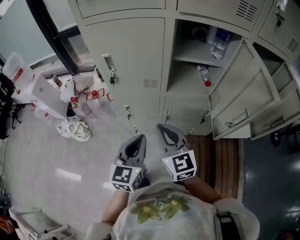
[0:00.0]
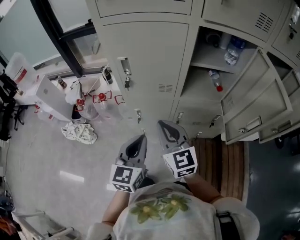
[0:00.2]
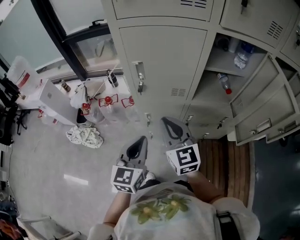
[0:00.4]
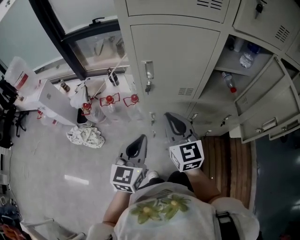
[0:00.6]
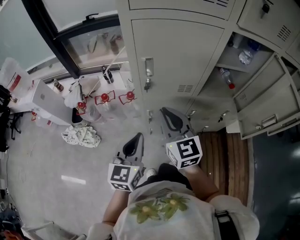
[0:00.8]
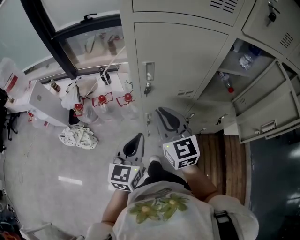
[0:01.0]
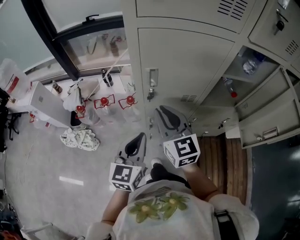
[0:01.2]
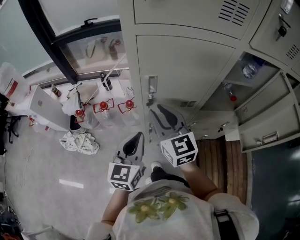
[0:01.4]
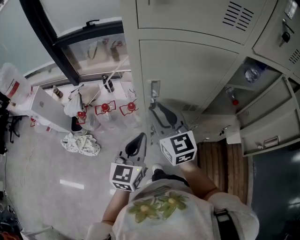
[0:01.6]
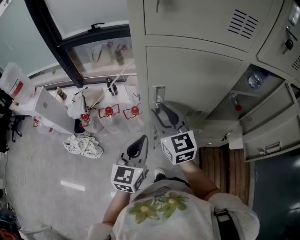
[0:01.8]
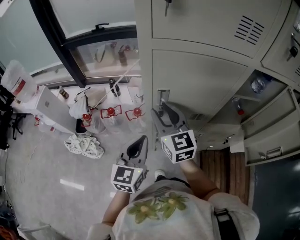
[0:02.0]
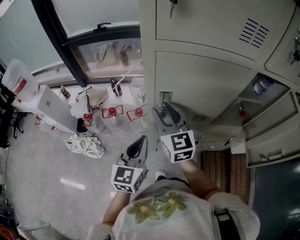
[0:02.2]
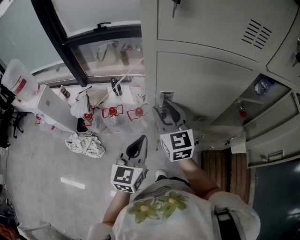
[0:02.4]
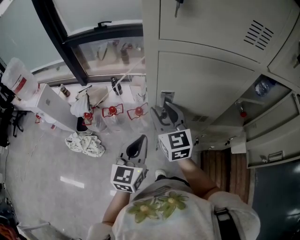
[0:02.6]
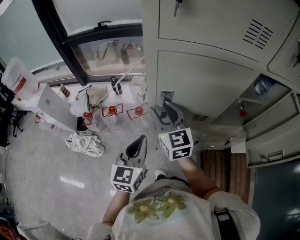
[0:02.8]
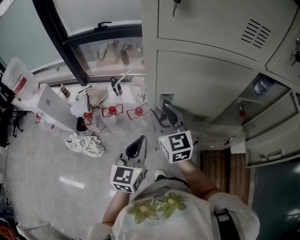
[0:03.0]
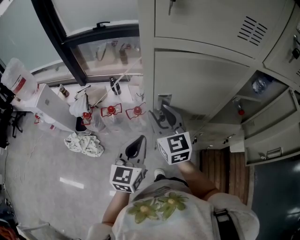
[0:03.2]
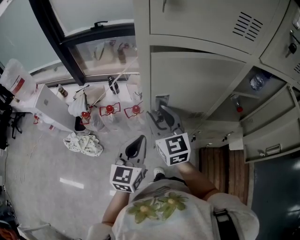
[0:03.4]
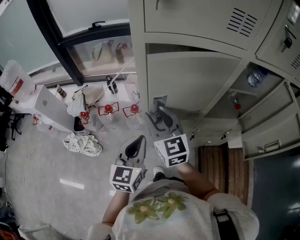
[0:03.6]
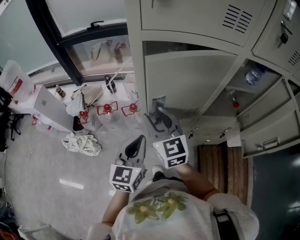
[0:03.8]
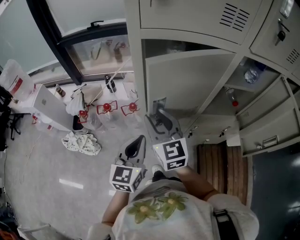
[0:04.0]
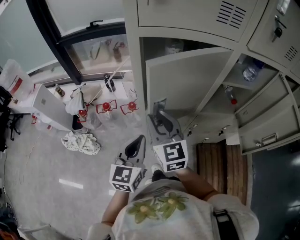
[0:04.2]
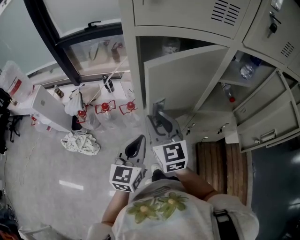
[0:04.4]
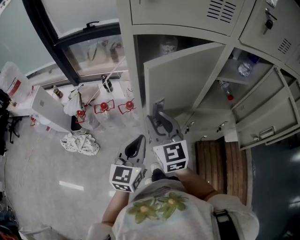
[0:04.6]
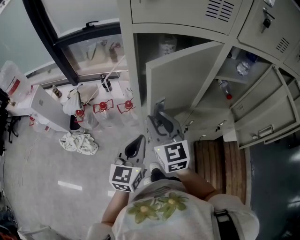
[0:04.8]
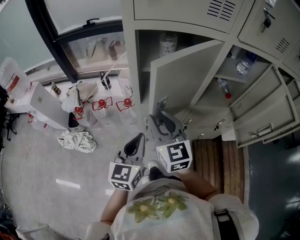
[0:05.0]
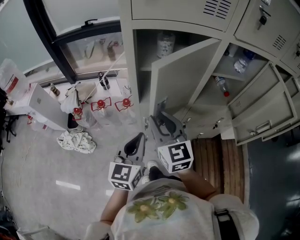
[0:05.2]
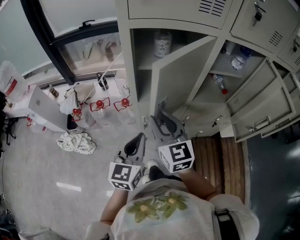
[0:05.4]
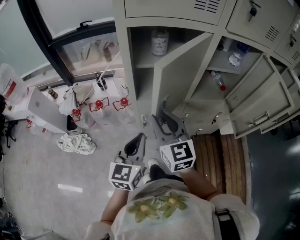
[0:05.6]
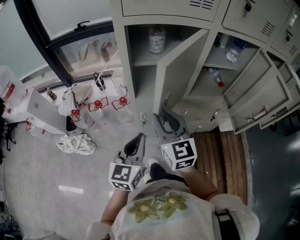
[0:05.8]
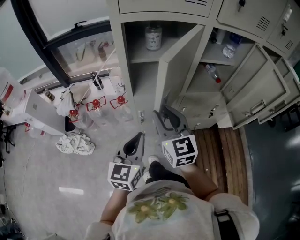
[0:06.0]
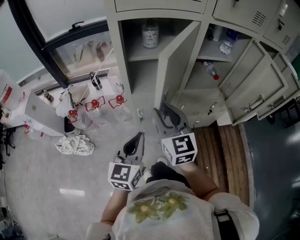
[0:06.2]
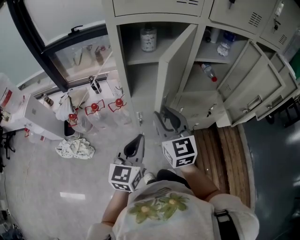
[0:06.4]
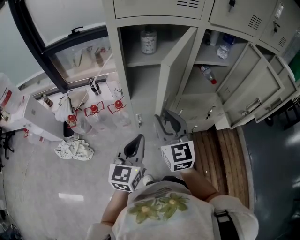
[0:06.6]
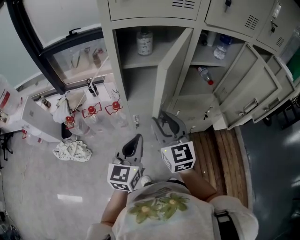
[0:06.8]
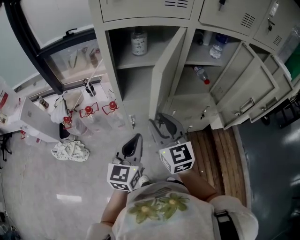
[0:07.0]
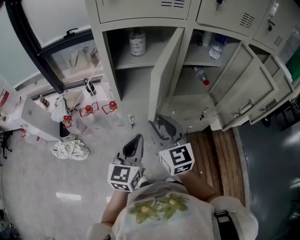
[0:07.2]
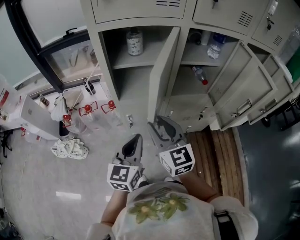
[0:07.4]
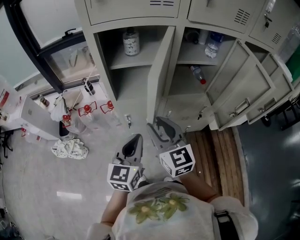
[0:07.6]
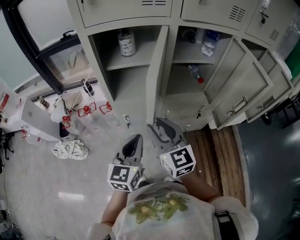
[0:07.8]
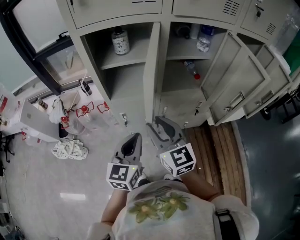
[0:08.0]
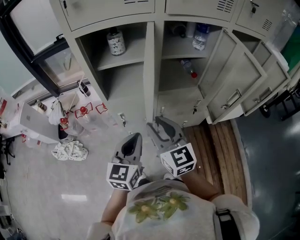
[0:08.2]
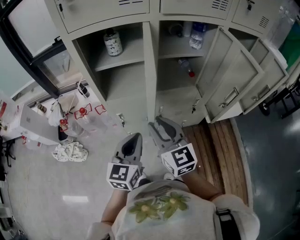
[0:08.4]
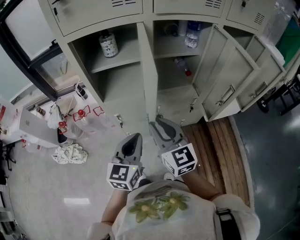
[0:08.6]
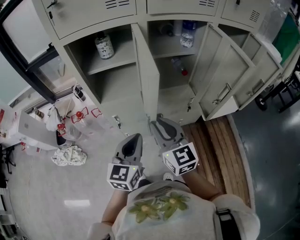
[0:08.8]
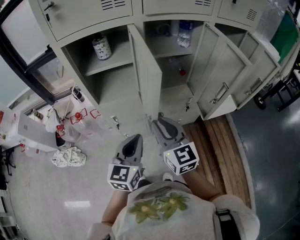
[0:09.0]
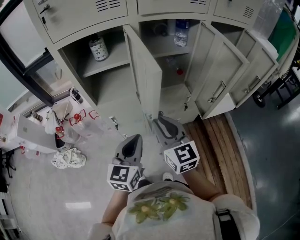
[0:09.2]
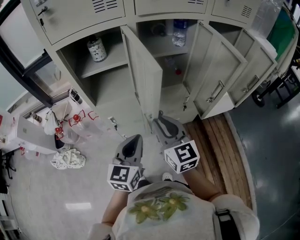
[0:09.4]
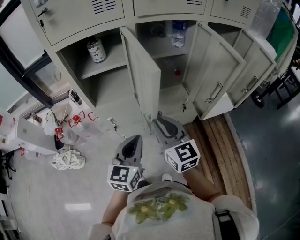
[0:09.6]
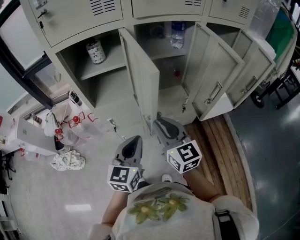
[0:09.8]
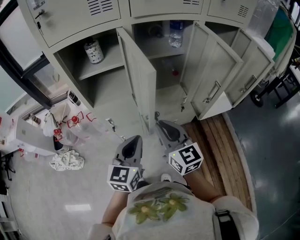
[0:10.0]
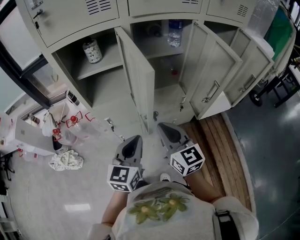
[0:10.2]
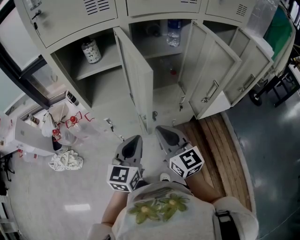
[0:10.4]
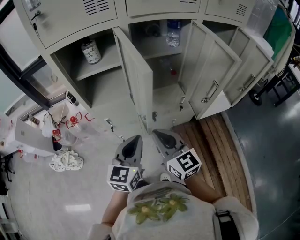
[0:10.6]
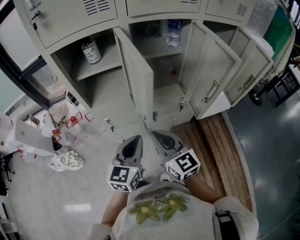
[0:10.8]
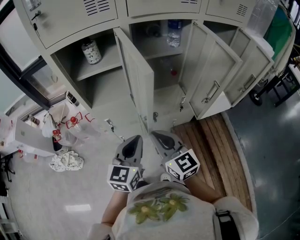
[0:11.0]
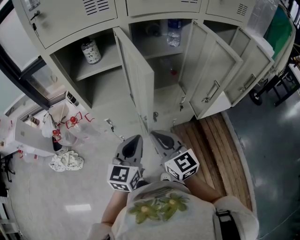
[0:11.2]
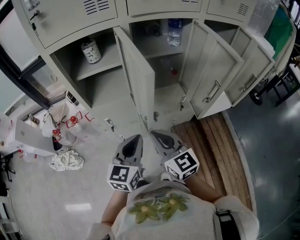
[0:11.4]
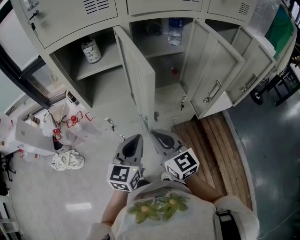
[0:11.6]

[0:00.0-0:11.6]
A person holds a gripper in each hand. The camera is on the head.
0:00.0 to 0:01.4: Both grippers travel together to the left and forward, about 25 cm.
0:01.4 to 0:02.8: The right gripper moves forward, about 5 cm.
0:02.8 to 0:04.4: The right gripper travels backward by approximately 10 cm, while the left gripper heads backward, covering roughly 5 cm.
0:04.4 to 0:05.8: Both grippers travel together backward, some 5 cm.
0:05.8 to 0:07.2: The two grippers go roughly 5 cm to the right.
0:07.2 to 0:08.8: The two grippers go approximately 10 cm to the right.
0:08.8 to 0:10.2: The right gripper moves to the right, approximately 5 cm.
0:10.2 to 0:11.6: The grippers move only a little.

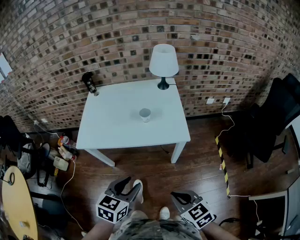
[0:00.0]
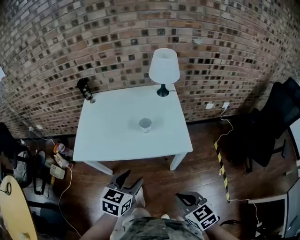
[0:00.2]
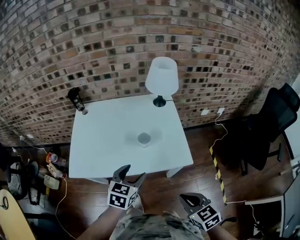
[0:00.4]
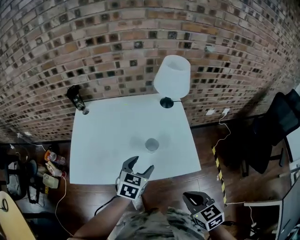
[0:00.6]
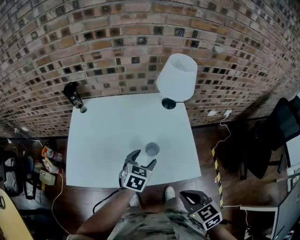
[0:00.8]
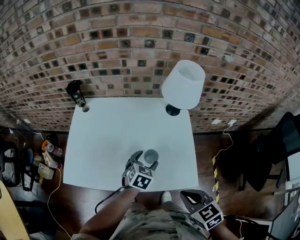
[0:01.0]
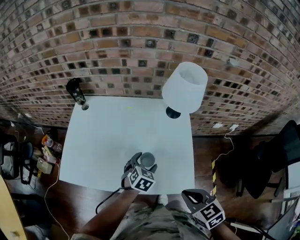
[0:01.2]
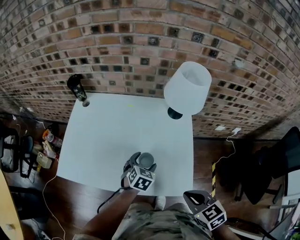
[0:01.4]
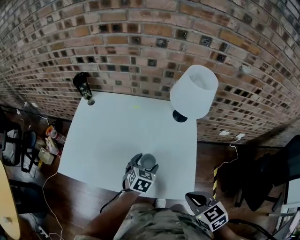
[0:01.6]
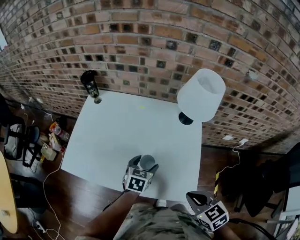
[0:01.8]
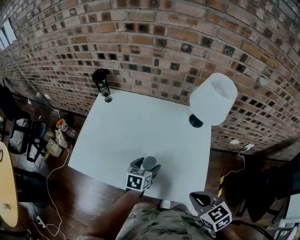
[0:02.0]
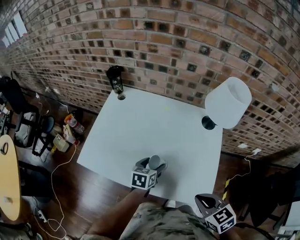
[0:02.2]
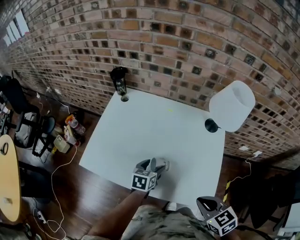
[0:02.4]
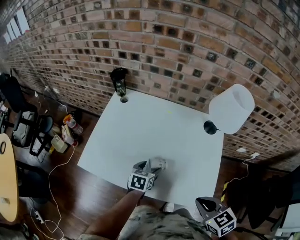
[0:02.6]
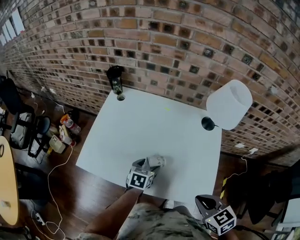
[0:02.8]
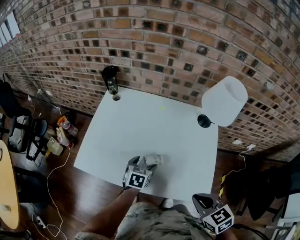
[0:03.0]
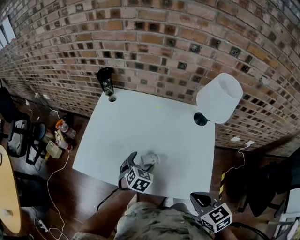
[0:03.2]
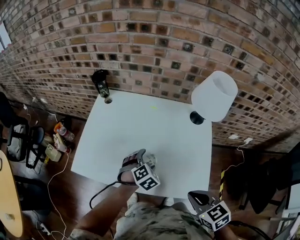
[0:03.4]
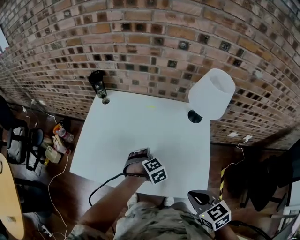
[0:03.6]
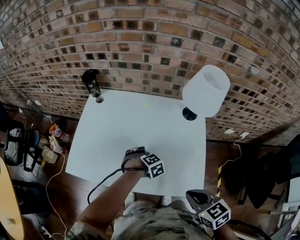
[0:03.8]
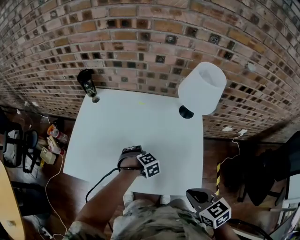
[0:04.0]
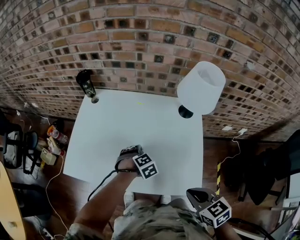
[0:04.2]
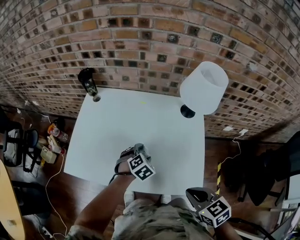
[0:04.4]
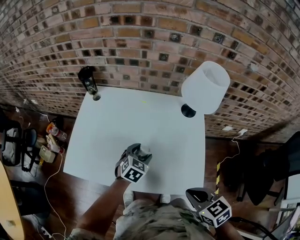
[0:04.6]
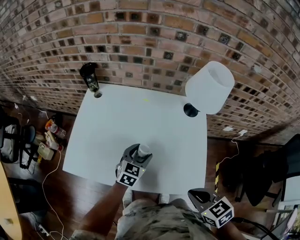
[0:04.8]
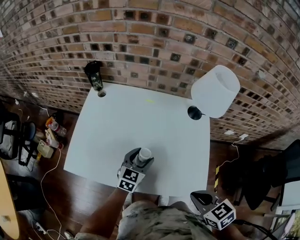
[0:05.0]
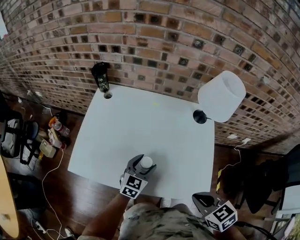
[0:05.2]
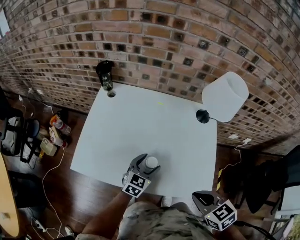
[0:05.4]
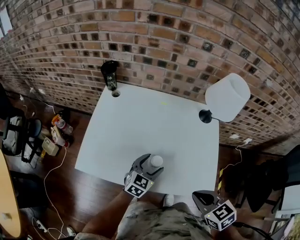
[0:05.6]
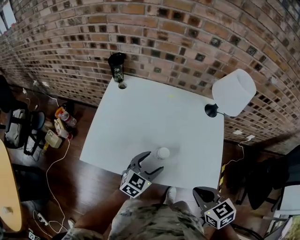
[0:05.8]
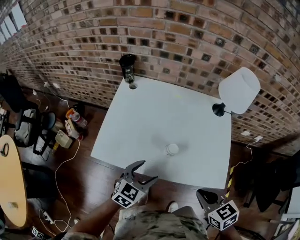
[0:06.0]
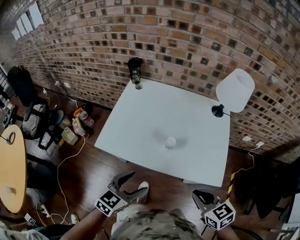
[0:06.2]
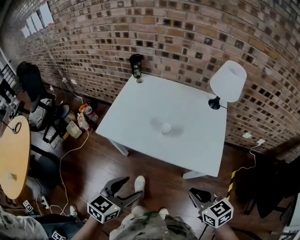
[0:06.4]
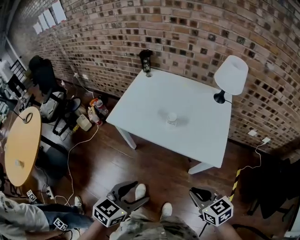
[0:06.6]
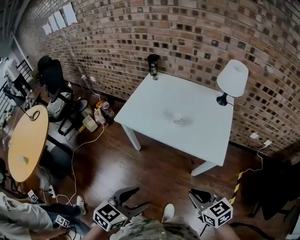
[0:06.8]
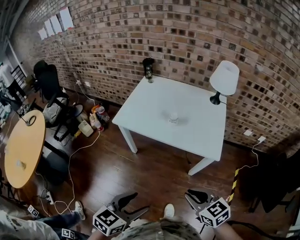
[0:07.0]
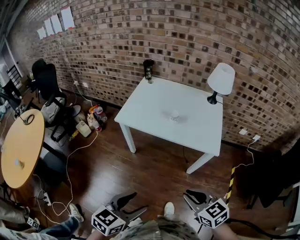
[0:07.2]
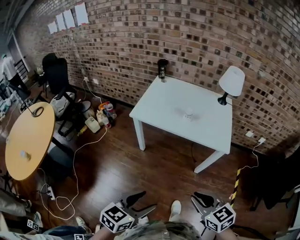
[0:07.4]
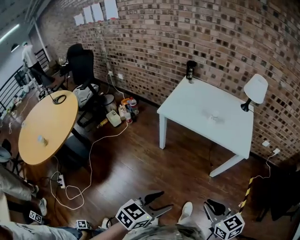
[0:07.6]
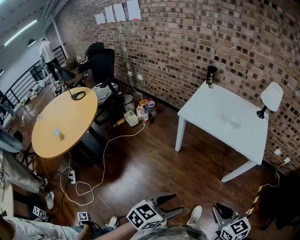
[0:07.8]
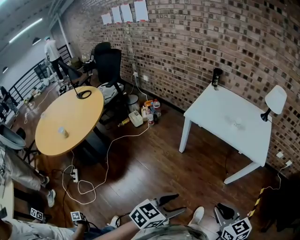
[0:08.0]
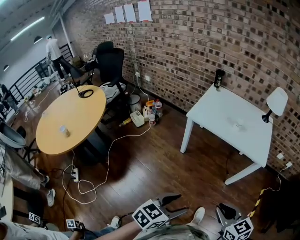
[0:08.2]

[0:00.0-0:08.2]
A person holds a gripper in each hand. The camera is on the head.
0:00.0 to 0:01.6: The left gripper heads forward and downward, covering approximately 50 cm, and opens up. The right gripper moves forward, some 35 cm.
0:01.6 to 0:03.2: The left gripper is displaced to the left by about 15 cm, while the right gripper shifts about 10 cm to the left.
0:03.2 to 0:05.0: The left gripper goes downward and returns, approximately 5 cm each way, and rotates approximately 30 degrees.
0:05.0 to 0:06.6: The left gripper heads backward, covering roughly 40 cm, while the right gripper travels backward by some 20 cm.
0:06.6 to 0:08.2: The grippers both shift backward and to the left by roughly 35 cm.

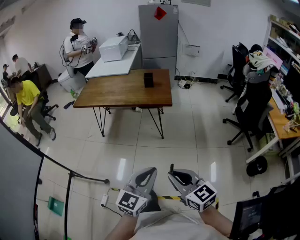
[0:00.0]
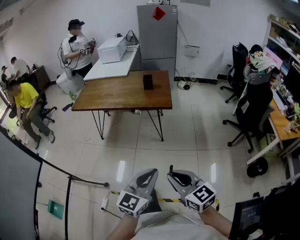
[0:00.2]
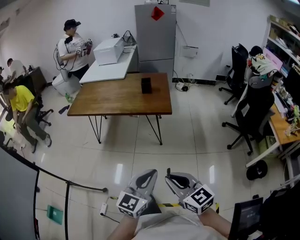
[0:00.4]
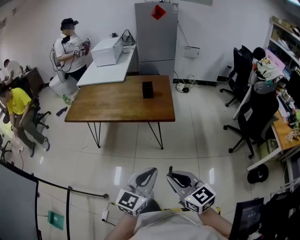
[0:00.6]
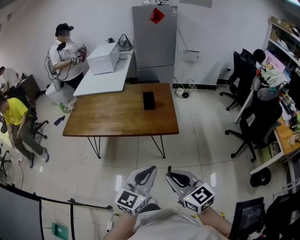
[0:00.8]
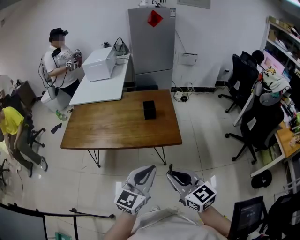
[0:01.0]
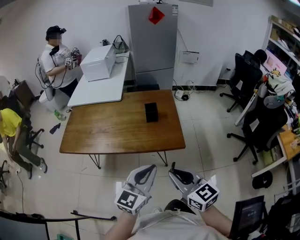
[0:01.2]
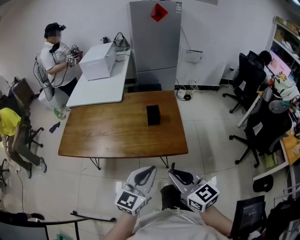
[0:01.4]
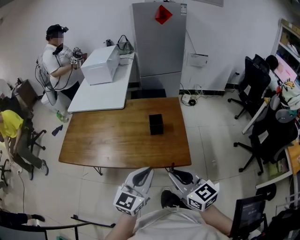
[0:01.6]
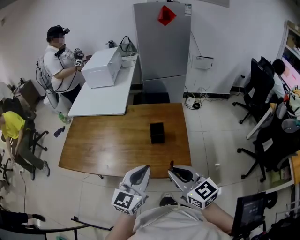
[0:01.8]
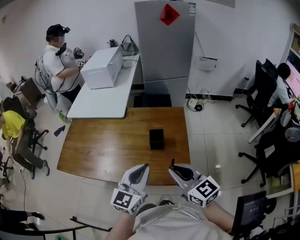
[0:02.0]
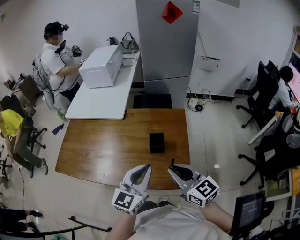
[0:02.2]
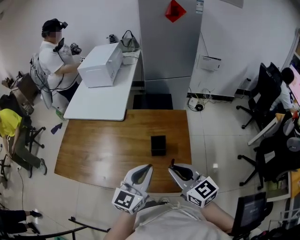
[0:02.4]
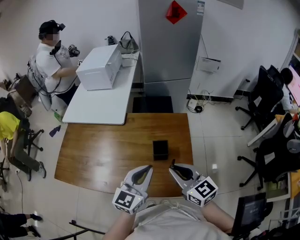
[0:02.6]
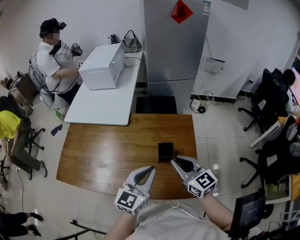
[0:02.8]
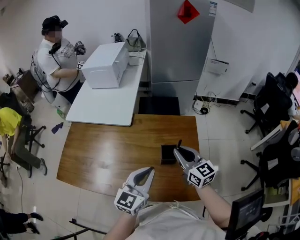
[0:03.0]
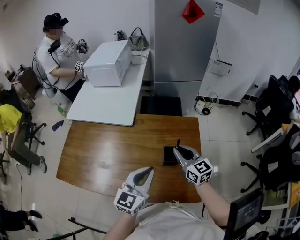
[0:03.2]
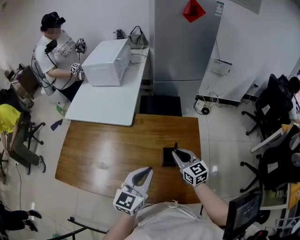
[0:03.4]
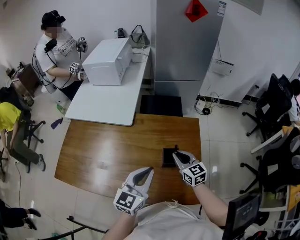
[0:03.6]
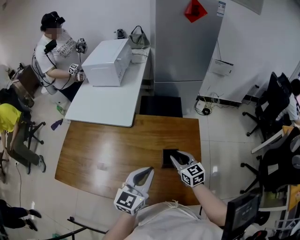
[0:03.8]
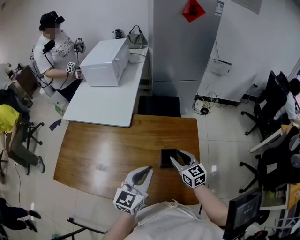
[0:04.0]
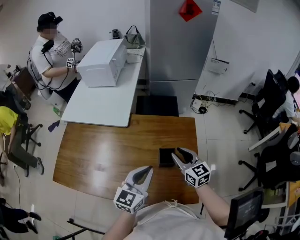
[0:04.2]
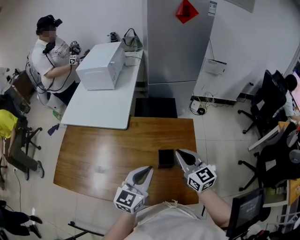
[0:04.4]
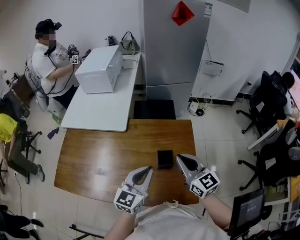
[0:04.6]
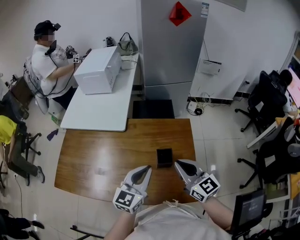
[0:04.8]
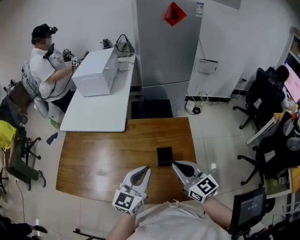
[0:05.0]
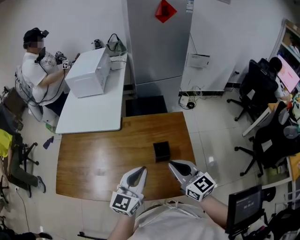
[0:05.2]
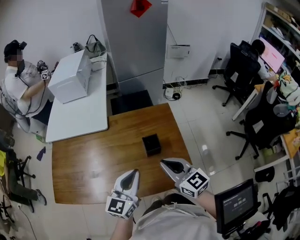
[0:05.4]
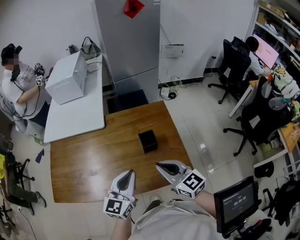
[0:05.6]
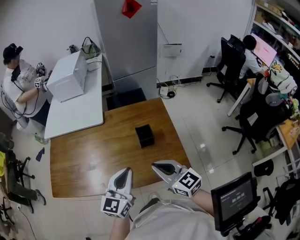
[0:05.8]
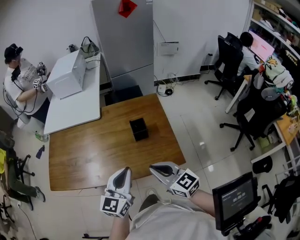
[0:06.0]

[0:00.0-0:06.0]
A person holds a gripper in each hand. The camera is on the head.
0:00.0 to 0:01.6: The pair of grippers is taken forward, about 50 cm.
0:01.6 to 0:03.0: The grippers both shift forward by approximately 30 cm.
0:03.0 to 0:04.4: The right gripper moves roughly 10 cm downward and comes back, and opens, then closes again.
0:04.4 to 0:06.0: Both grippers move backward, about 20 cm.
